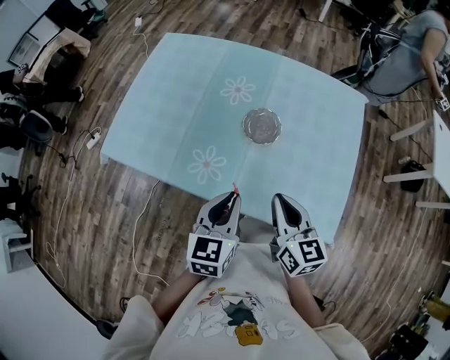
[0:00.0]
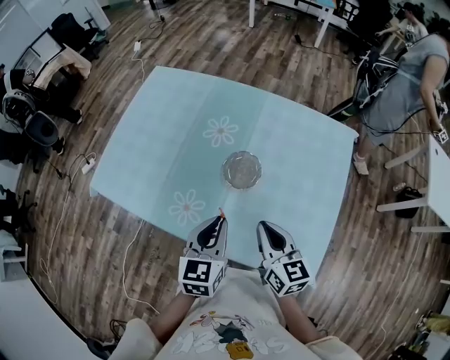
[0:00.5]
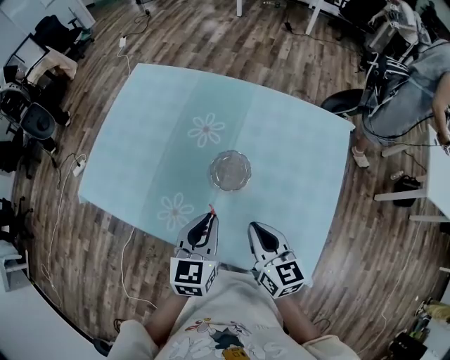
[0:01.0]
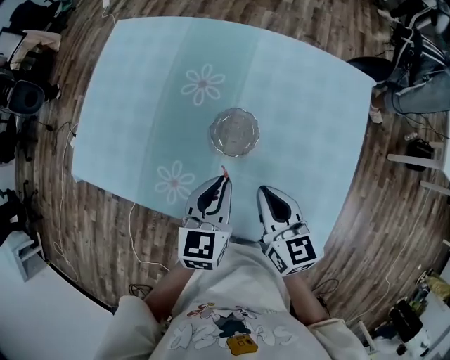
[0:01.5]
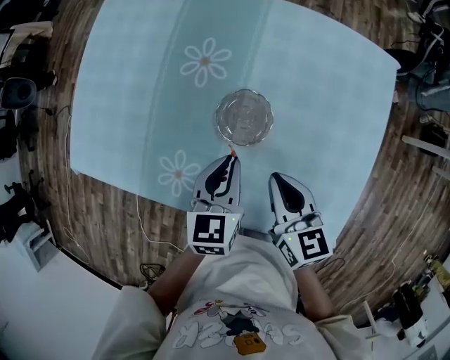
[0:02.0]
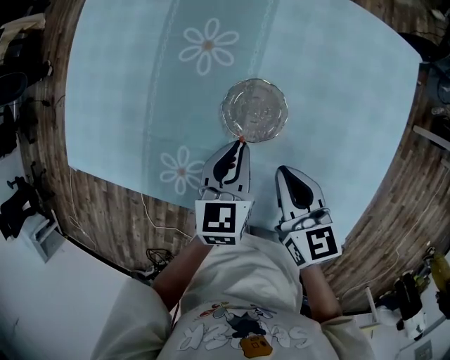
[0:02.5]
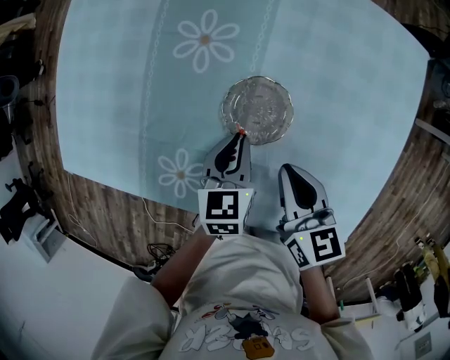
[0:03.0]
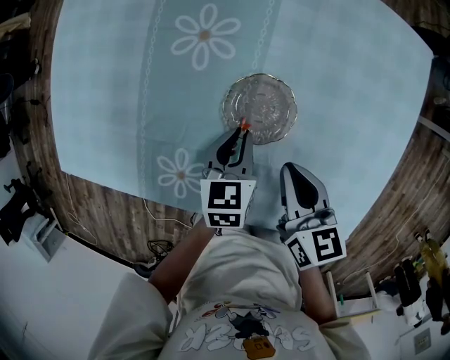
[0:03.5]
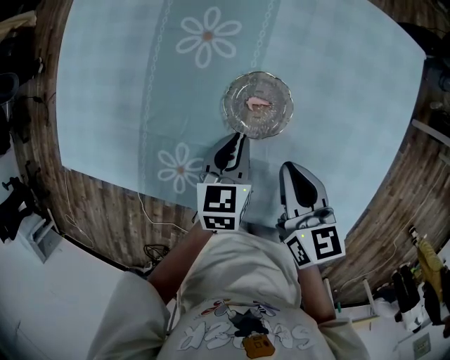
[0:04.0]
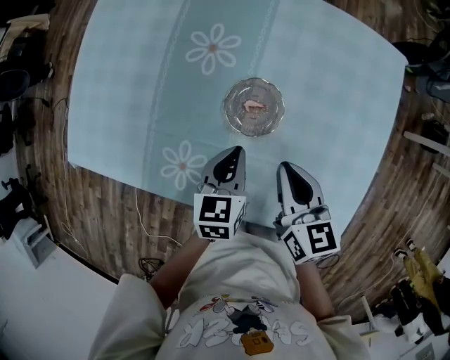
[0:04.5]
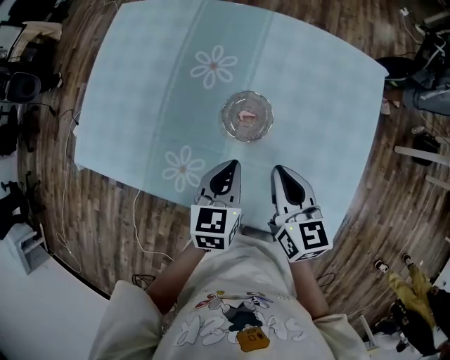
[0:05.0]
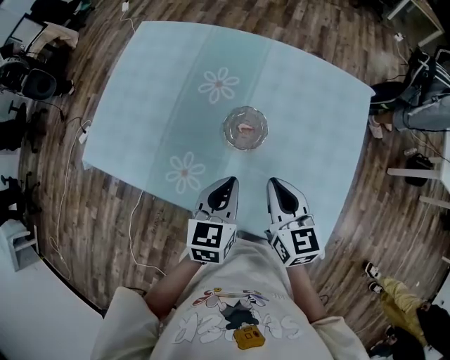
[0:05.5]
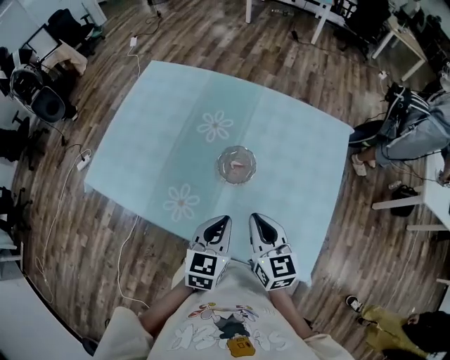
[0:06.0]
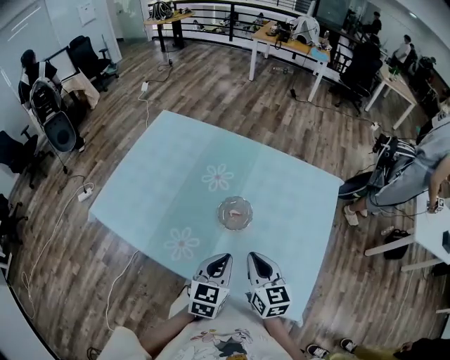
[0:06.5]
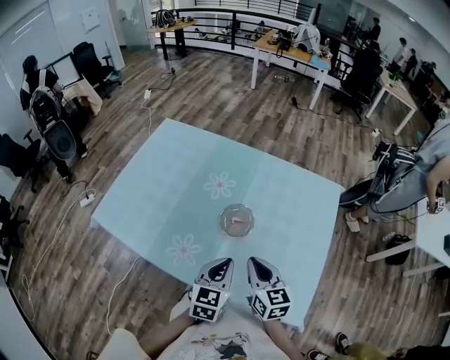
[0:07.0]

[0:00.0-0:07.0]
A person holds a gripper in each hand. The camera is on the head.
0:00.0 to 0:02.0: Both grippers move forward and downward, roughly 25 cm.
0:02.0 to 0:03.5: The right gripper goes about 5 cm downward. Meanwhile the left gripper moves downward, some 15 cm.
0:03.5 to 0:05.0: The right gripper is displaced upward by some 10 cm. The left gripper heads upward and backward, covering about 15 cm.
0:05.0 to 0:07.0: The right gripper goes some 10 cm backward and upward; the left gripper moves upward and backward, roughly 15 cm.

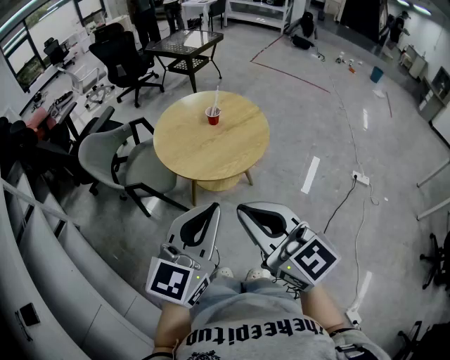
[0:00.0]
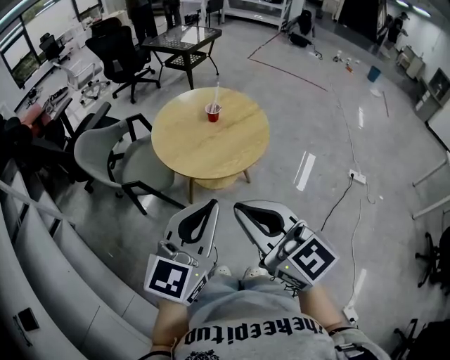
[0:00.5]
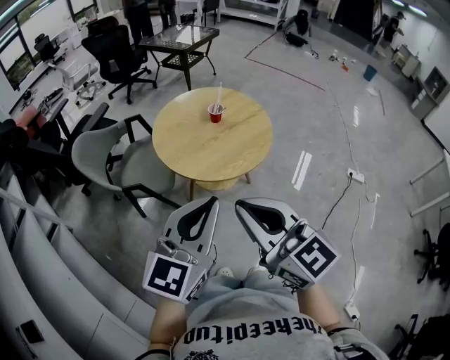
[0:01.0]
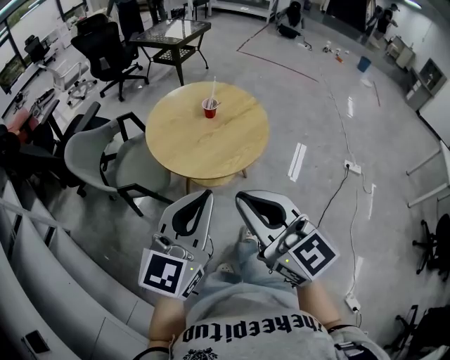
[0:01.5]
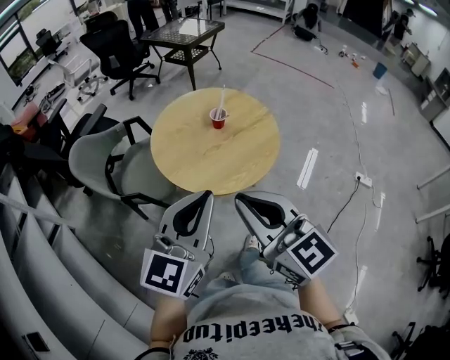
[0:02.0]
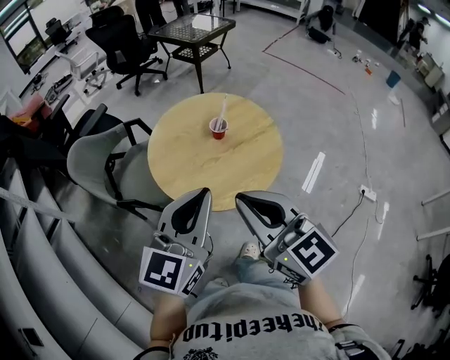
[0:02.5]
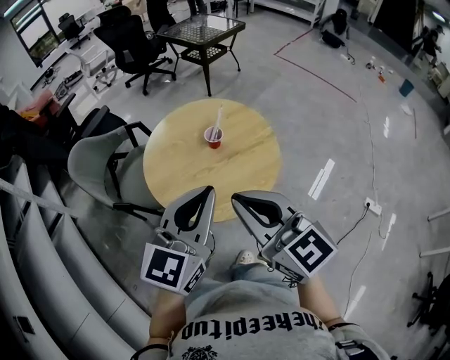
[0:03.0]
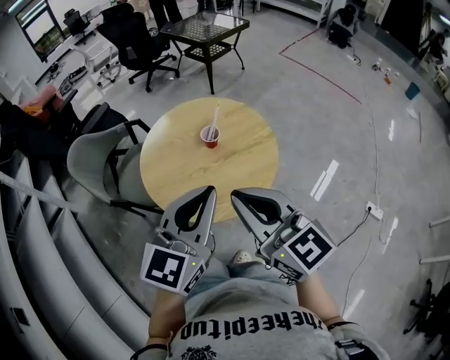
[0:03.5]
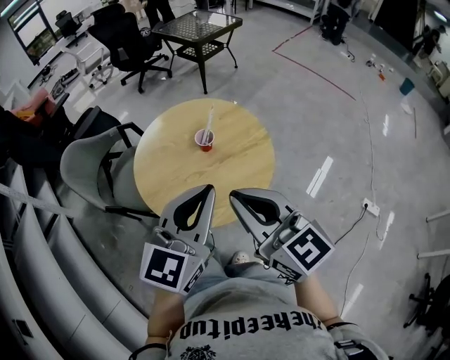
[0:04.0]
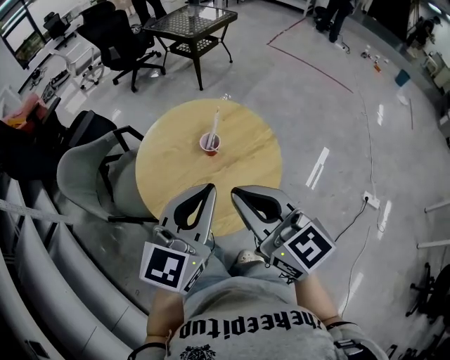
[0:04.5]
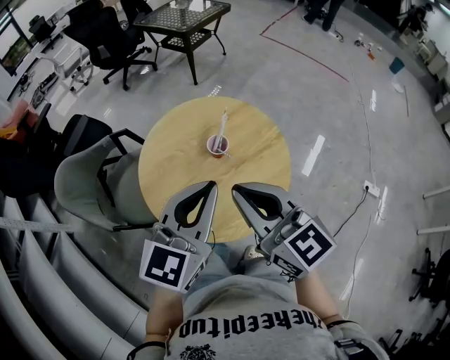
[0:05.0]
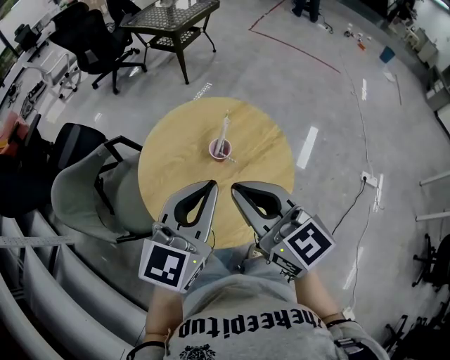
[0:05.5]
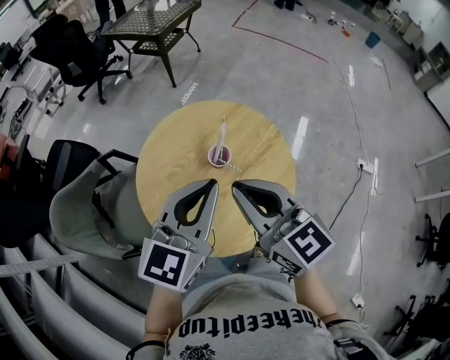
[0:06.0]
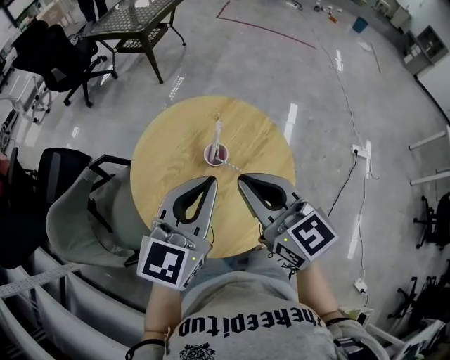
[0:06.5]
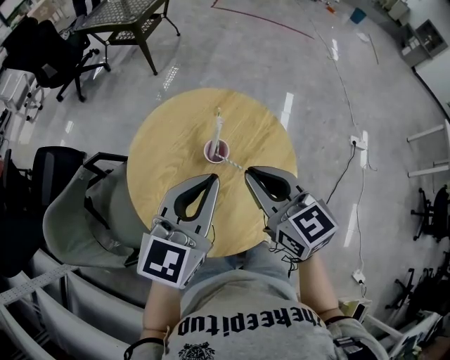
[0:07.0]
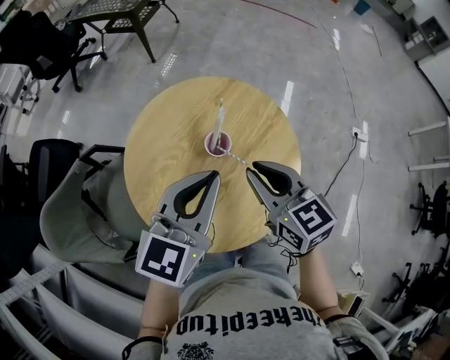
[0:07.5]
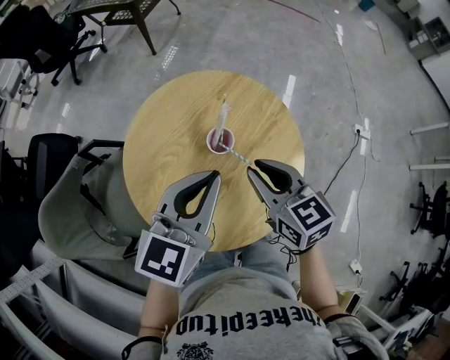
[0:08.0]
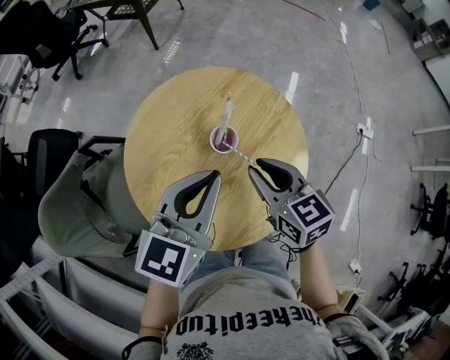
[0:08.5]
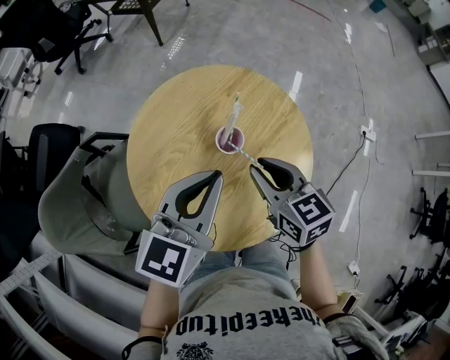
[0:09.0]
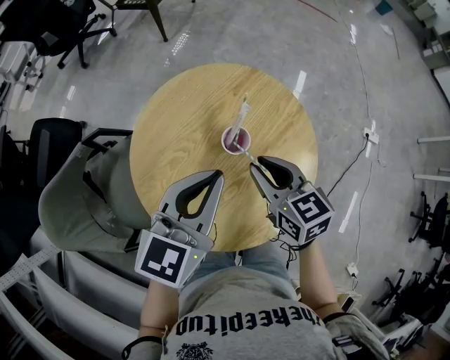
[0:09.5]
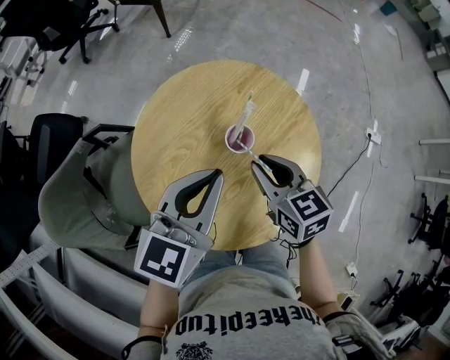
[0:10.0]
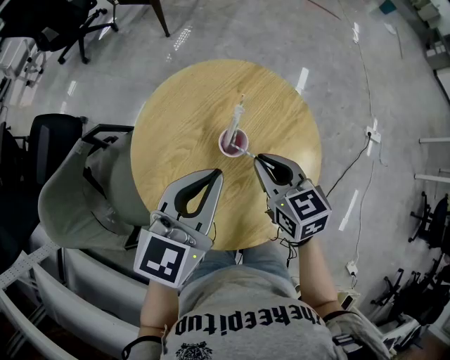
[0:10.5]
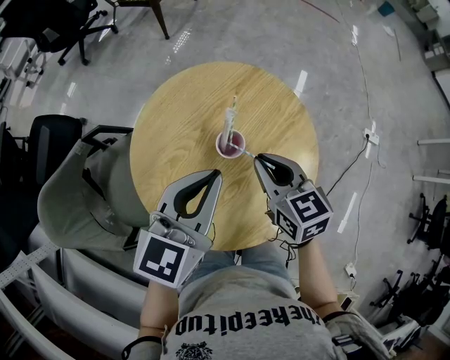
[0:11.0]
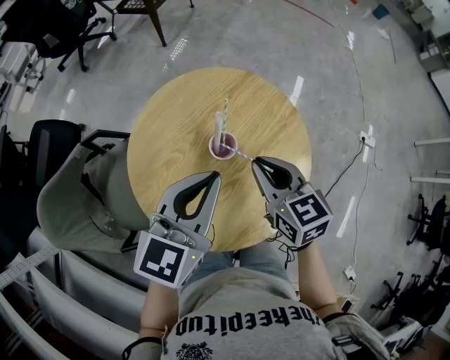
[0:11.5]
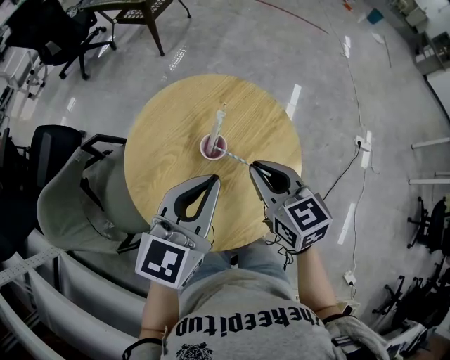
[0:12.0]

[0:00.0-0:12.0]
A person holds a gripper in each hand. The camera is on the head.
0:00.0 to 0:02.0: The two grippers go about 10 cm forward.
0:02.0 to 0:04.0: The right gripper is displaced forward and to the right by about 20 cm, while the left gripper travels to the right and forward by approximately 20 cm.
0:04.0 to 0:06.0: Both grippers travel together forward and to the left, about 20 cm. The right gripper changes its angle by about 20 degrees; the left gripper rotates about 20 degrees.
0:06.0 to 0:08.0: The right gripper goes some 15 cm downward, and rotates about 20 degrees. Meanwhile the left gripper travels downward by some 10 cm.
0:08.0 to 0:10.0: The right gripper ends up approximately 5 cm from where it was.
0:10.0 to 0:12.0: The left gripper moves about 5 cm; the right gripper goes approximately 5 cm upward.

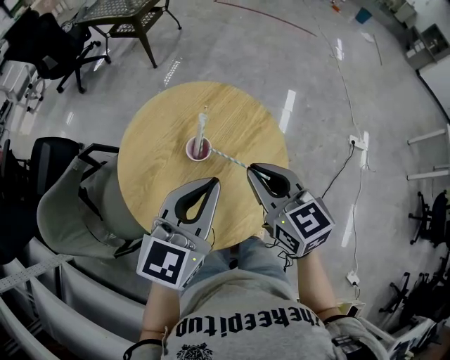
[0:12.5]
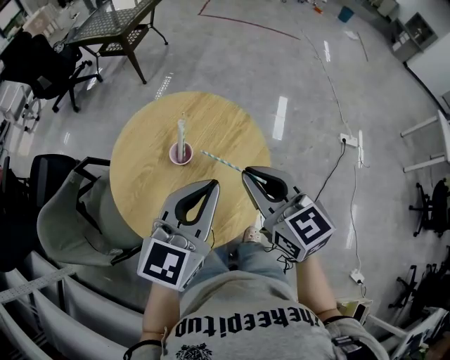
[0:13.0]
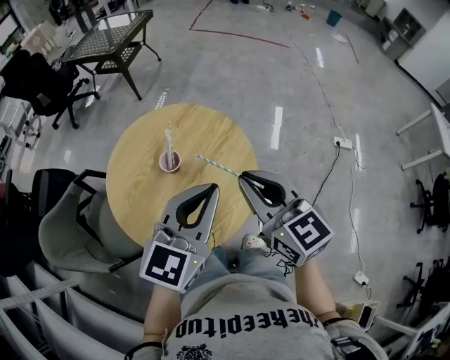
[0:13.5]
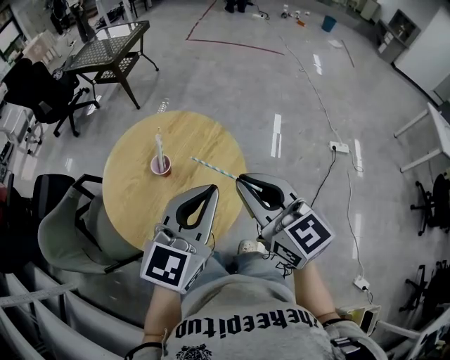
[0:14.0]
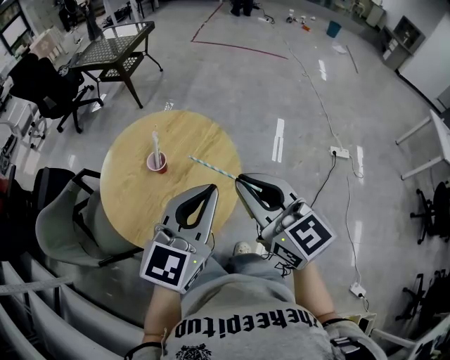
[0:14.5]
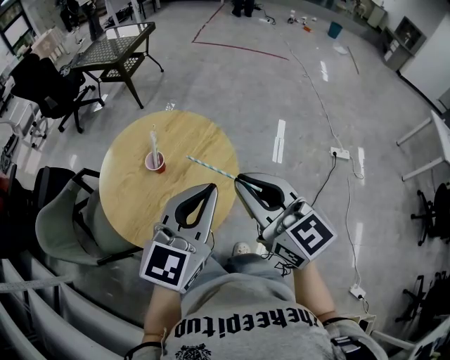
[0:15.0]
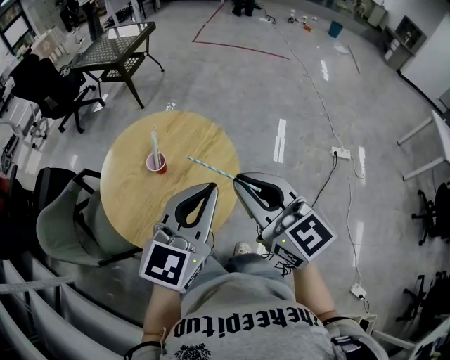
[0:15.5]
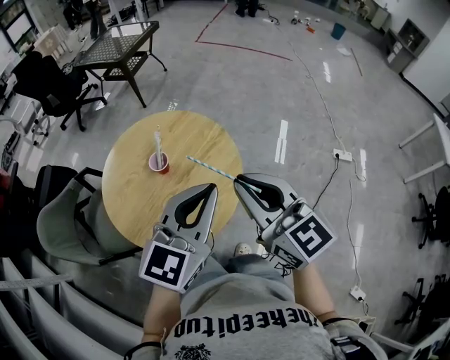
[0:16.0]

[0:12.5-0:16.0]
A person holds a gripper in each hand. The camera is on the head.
0:12.5 to 0:14.5: Both grippers move to the right, upward and backward, about 20 cm.
0:14.5 to 0:16.0: Neither gripper changes place.

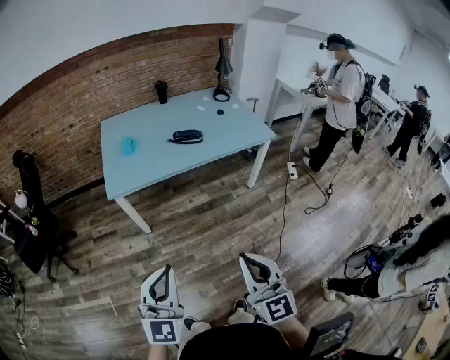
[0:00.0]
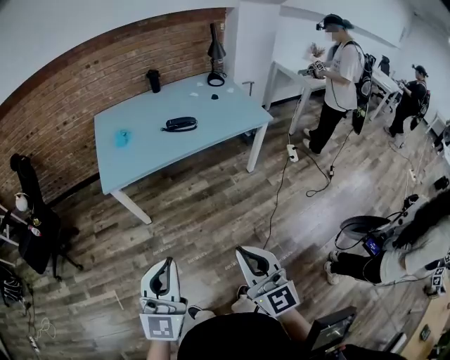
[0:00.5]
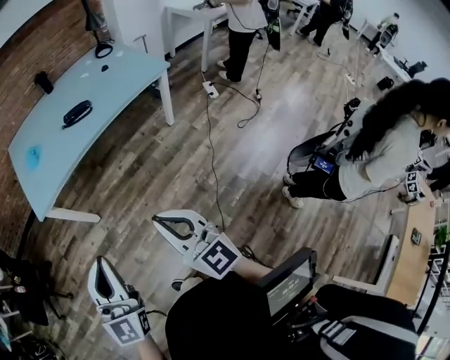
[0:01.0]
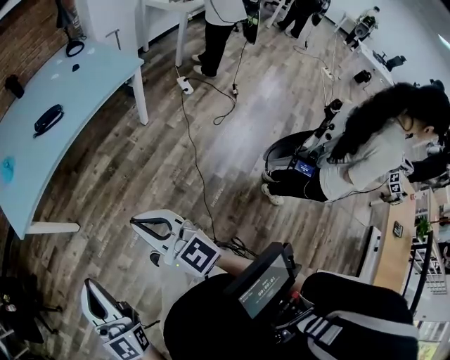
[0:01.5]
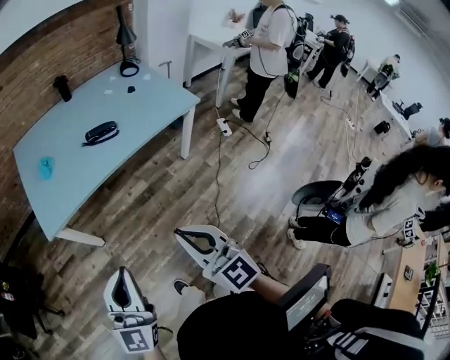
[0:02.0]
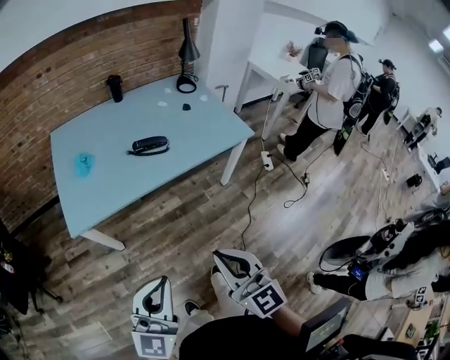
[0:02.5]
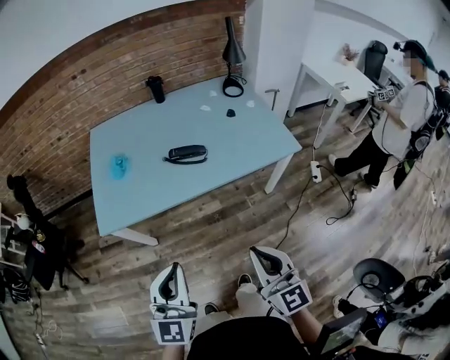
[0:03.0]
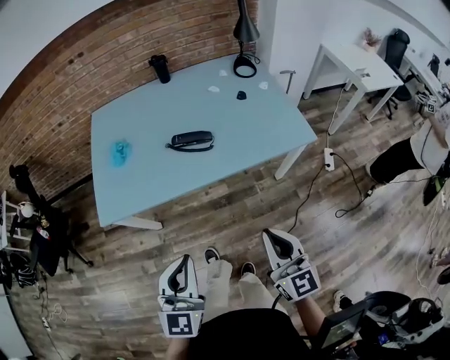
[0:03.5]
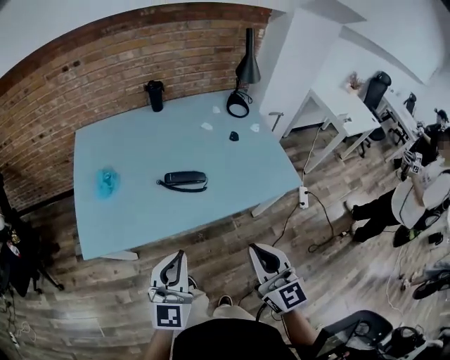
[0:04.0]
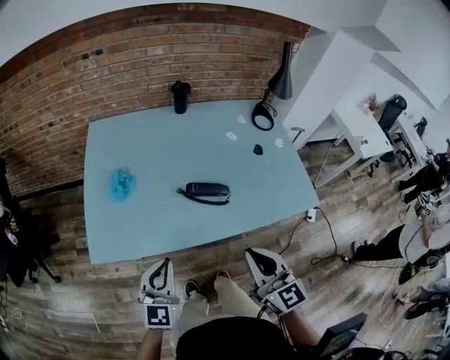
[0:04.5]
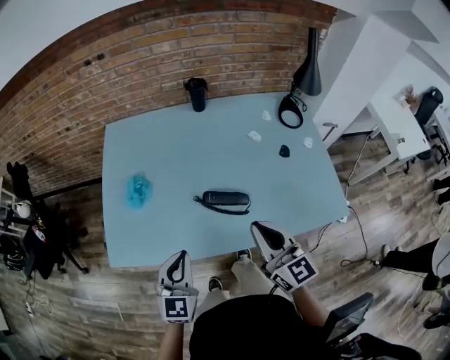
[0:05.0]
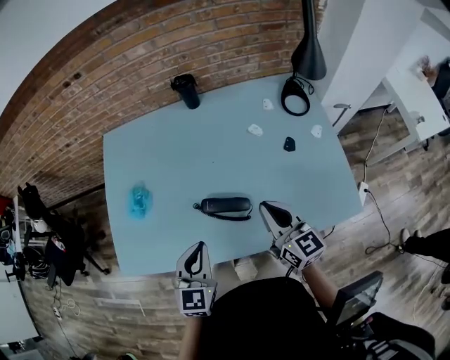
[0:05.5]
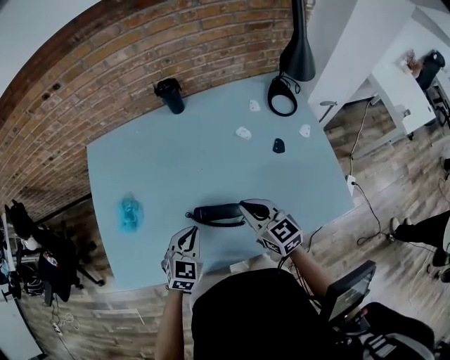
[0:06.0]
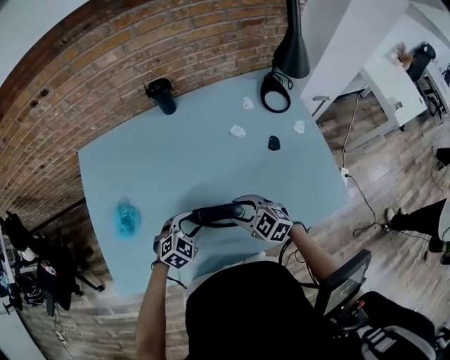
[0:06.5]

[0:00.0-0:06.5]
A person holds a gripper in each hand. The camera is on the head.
0:00.0 to 0:02.0: The two grippers go roughly 15 cm forward. The left gripper turns by some 20 degrees.
0:02.0 to 0:04.5: The pair of grippers is taken forward, approximately 40 cm. The left gripper swivels roughly 30 degrees.
0:04.5 to 0:06.5: The left gripper shifts approximately 35 cm forward, downward and to the right, tilts its fingers some 40 degrees downward, and opens up, while the right gripper shifts some 35 cm forward and downward, changes its angle by about 40 degrees, and opens its fingers.
